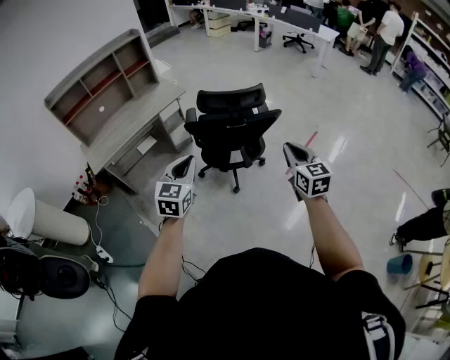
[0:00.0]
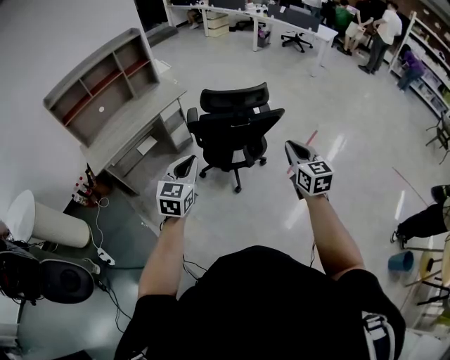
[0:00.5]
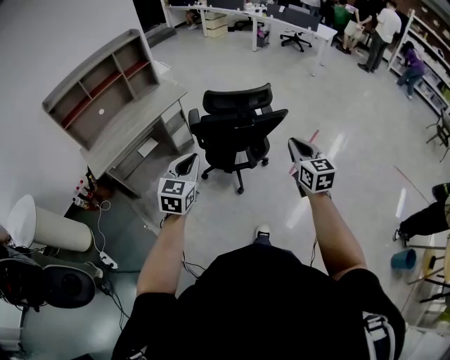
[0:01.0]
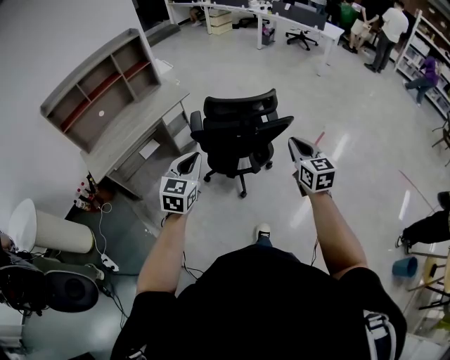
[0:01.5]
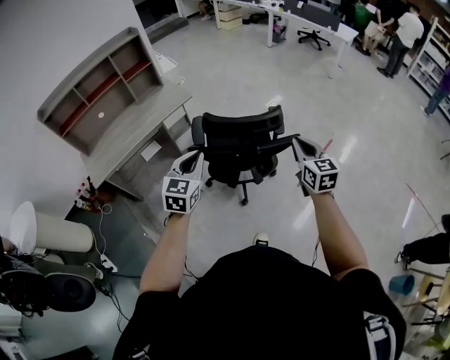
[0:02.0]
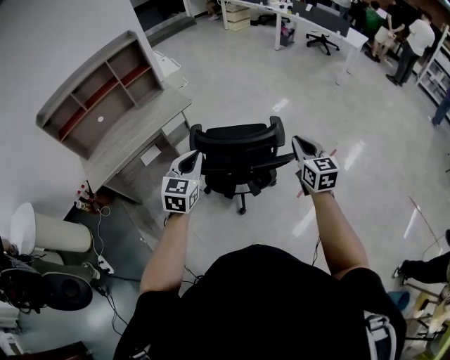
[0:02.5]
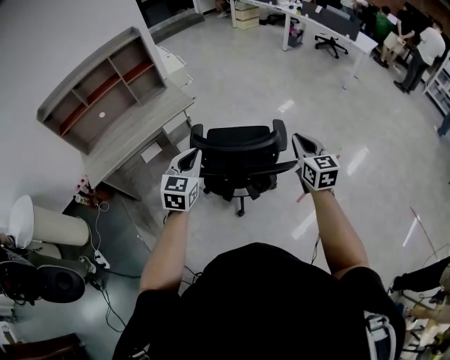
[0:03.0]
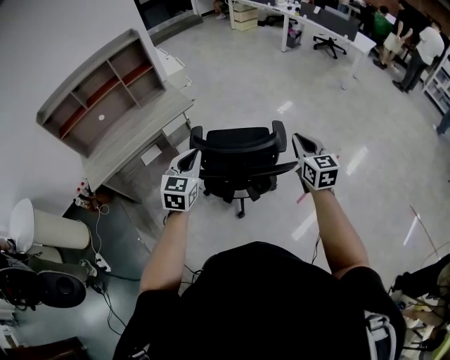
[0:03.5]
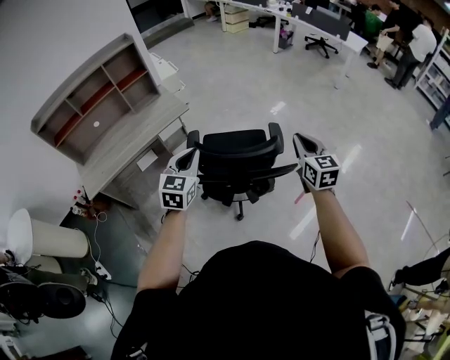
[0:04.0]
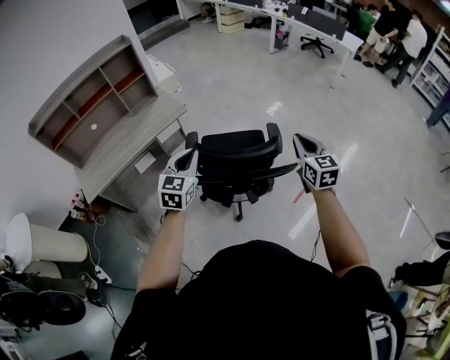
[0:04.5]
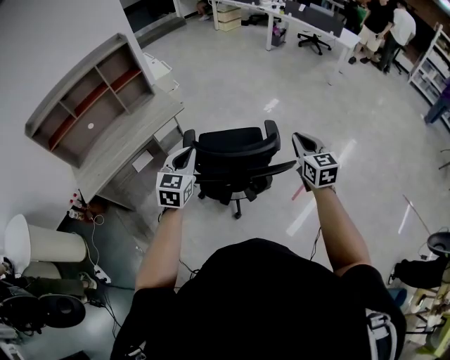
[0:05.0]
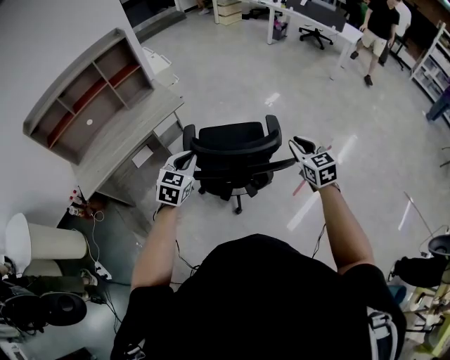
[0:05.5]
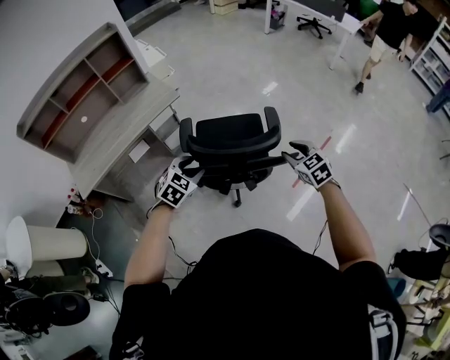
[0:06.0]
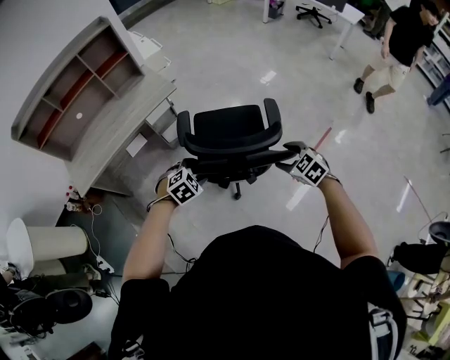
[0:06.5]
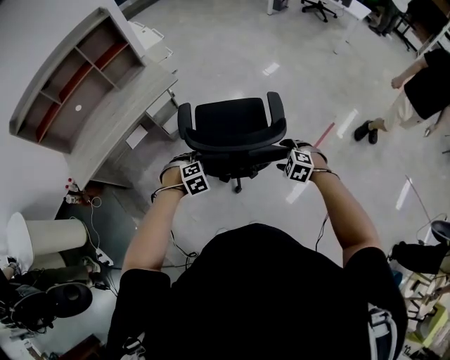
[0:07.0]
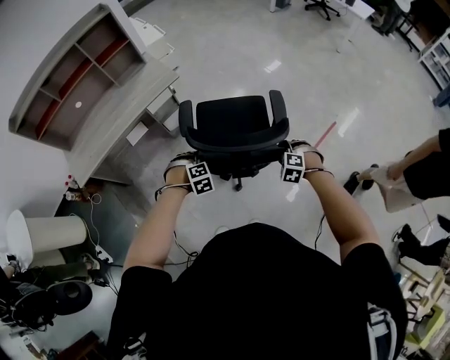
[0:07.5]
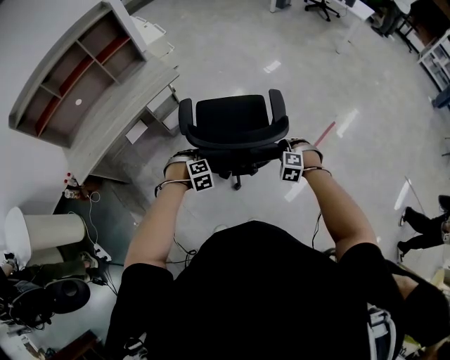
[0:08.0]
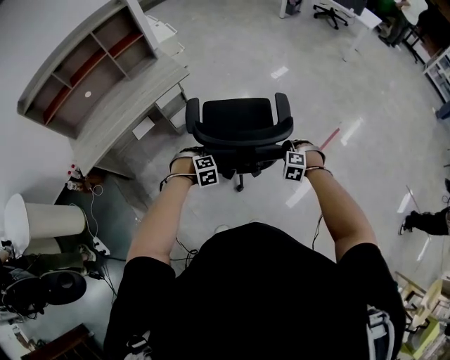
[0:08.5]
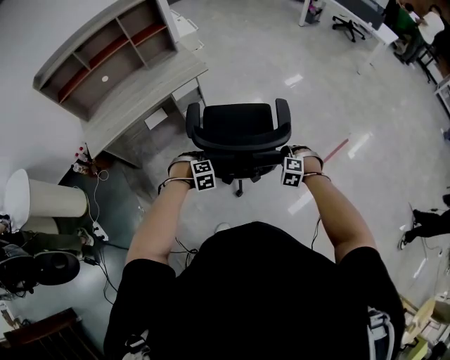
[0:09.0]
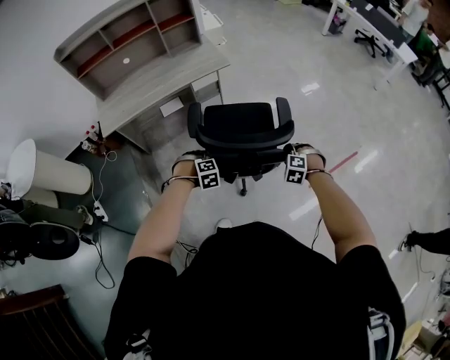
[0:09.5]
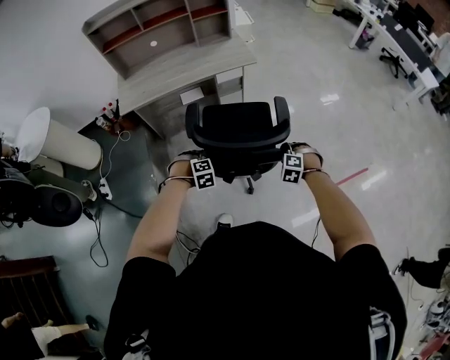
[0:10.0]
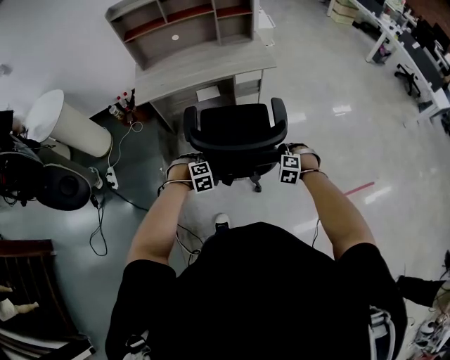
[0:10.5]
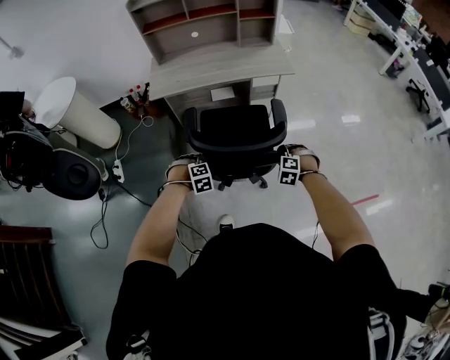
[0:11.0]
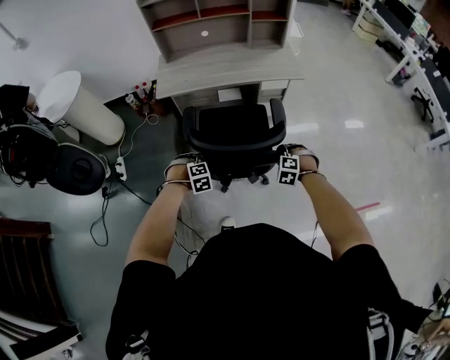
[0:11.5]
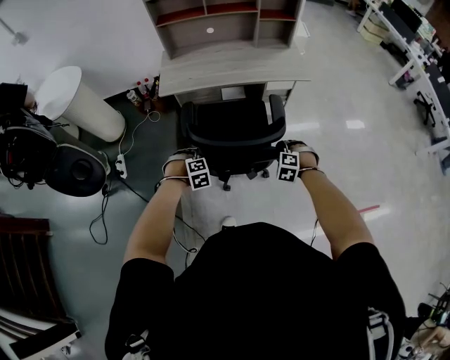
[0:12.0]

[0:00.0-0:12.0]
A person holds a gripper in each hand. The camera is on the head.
0:00.0 to 0:02.0: Both grippers move forward, roughly 20 cm.
0:02.0 to 0:04.0: Both grippers travel together forward, some 15 cm.
0:04.0 to 0:06.0: Both grippers move downward, about 15 cm. The right gripper rotates about 30 degrees, and opens up; the left gripper swivels approximately 40 degrees, and opens its fingers.
0:06.0 to 0:08.0: The two grippers go about 15 cm downward. The right gripper twists approximately 50 degrees counterclockwise, seen from behind, and opens, then closes once more. Meanwhile the left gripper swivels approximately 50 degrees, and opens, then closes once more.
0:08.0 to 0:10.0: The right gripper travels to the left by about 20 cm, and turns by approximately 20 degrees. The left gripper moves to the left and backward, approximately 25 cm, and rotates approximately 20 degrees.
0:10.0 to 0:12.0: The left gripper goes approximately 20 cm to the left; the right gripper goes some 25 cm to the left and forward.

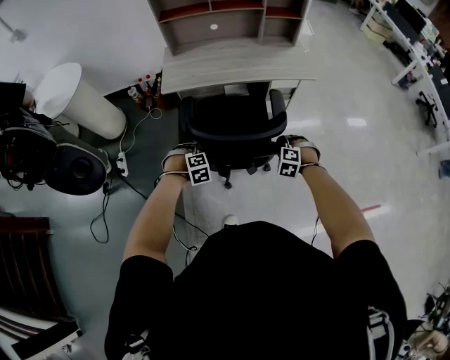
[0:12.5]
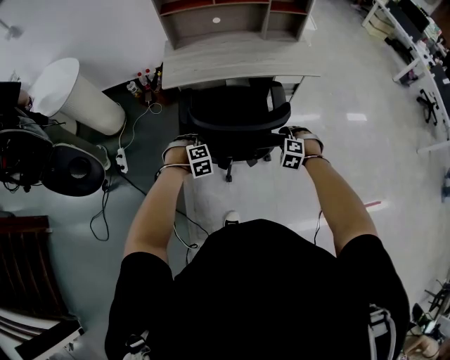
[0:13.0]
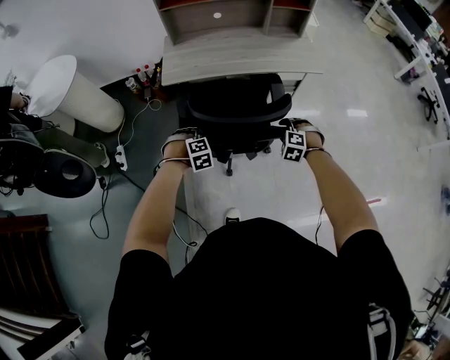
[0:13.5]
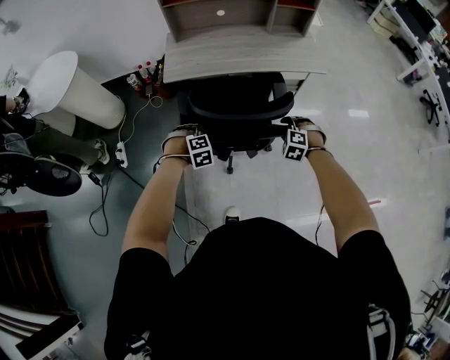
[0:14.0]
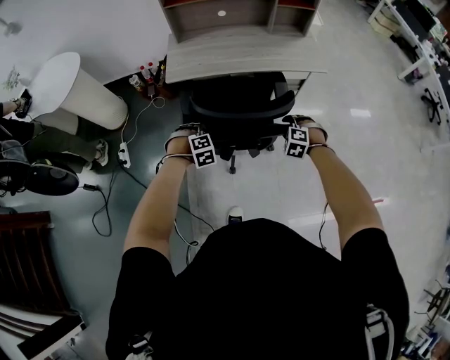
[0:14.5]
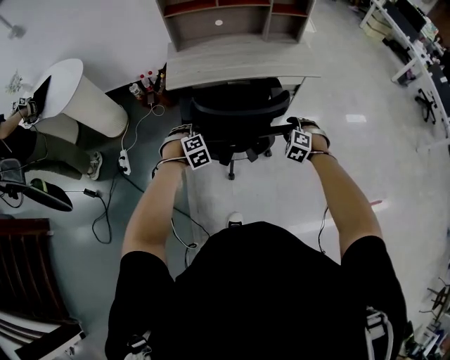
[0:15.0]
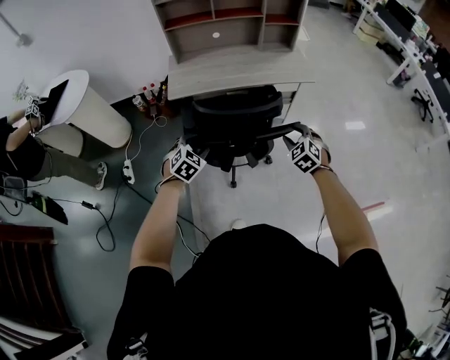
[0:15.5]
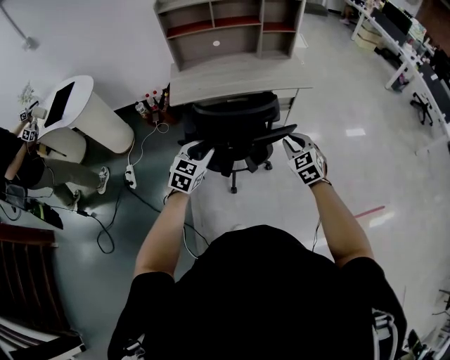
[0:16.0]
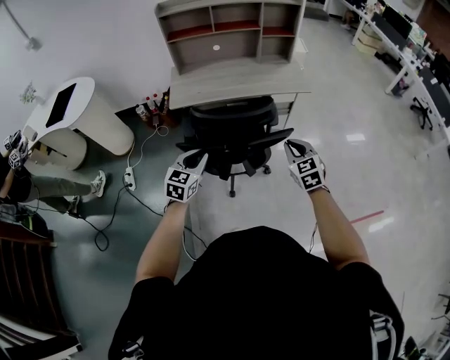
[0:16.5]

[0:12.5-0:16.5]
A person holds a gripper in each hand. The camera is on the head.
0:12.5 to 0:14.5: Both grippers move forward, about 5 cm.
0:14.5 to 0:16.5: The grippers both shift upward and backward by approximately 20 cm. The right gripper rolls clockwise, seen from behind, by about 50 degrees, and closes up; the left gripper tilts its fingers approximately 40 degrees upward.

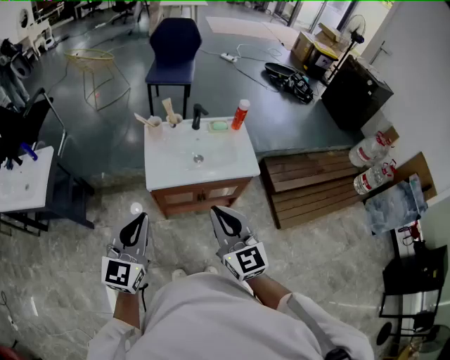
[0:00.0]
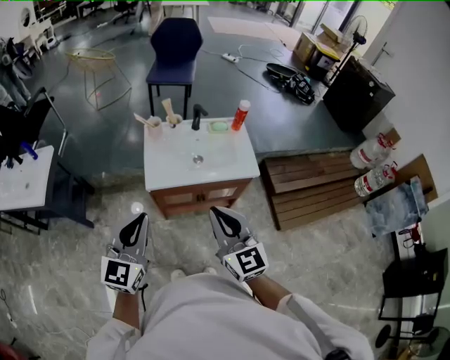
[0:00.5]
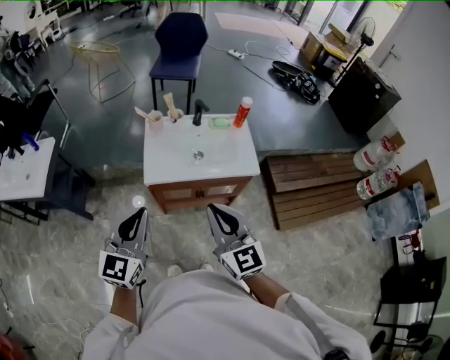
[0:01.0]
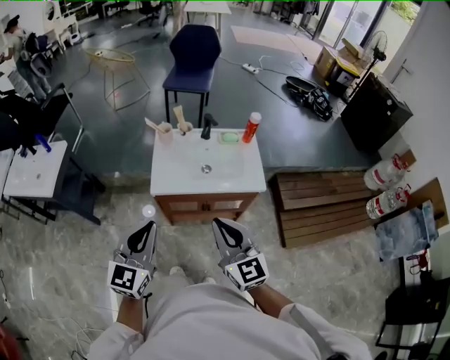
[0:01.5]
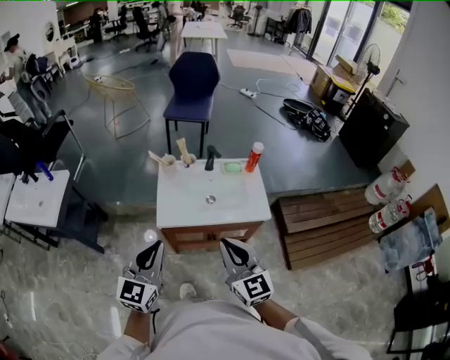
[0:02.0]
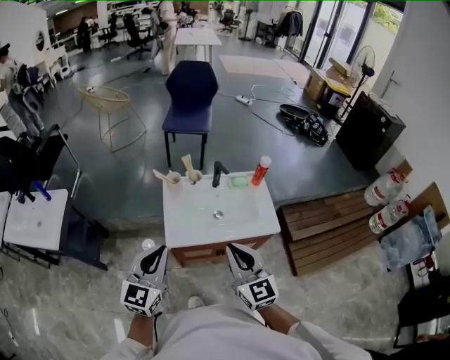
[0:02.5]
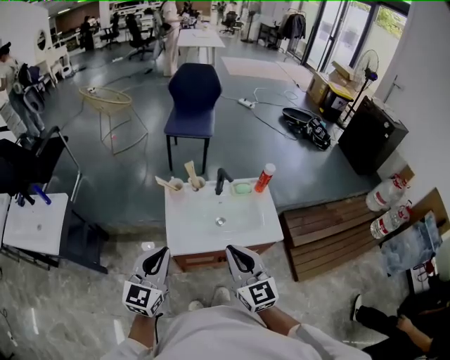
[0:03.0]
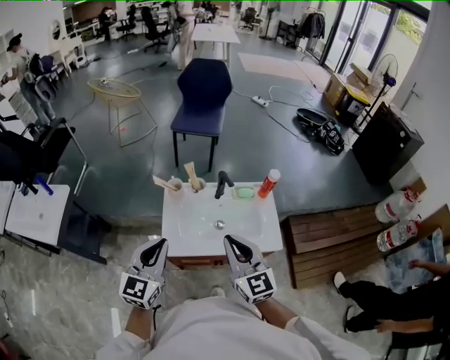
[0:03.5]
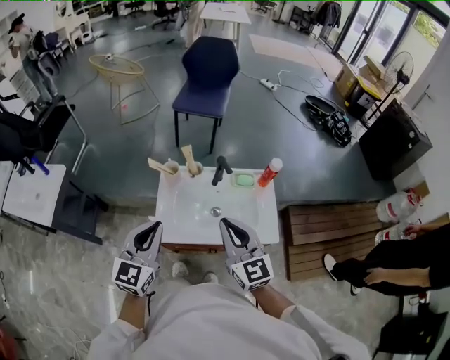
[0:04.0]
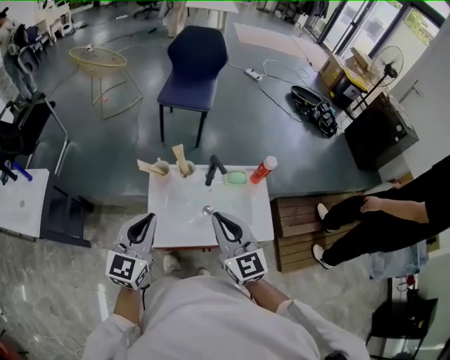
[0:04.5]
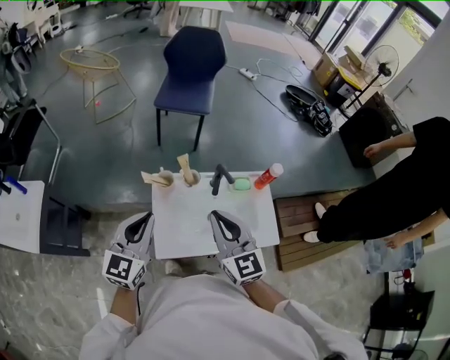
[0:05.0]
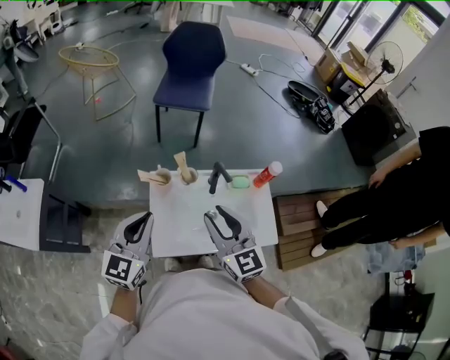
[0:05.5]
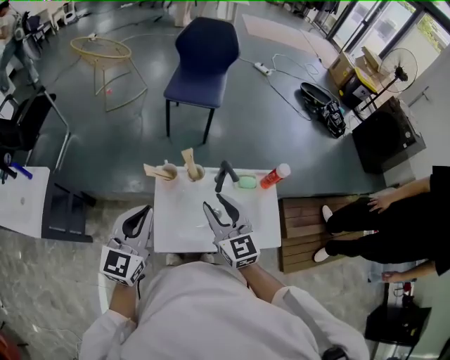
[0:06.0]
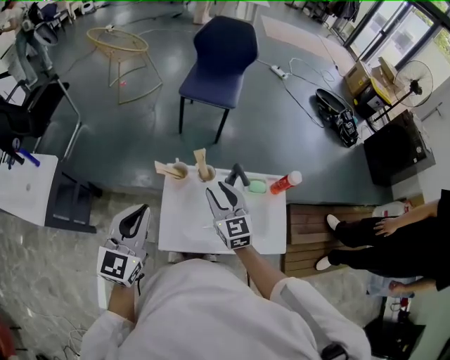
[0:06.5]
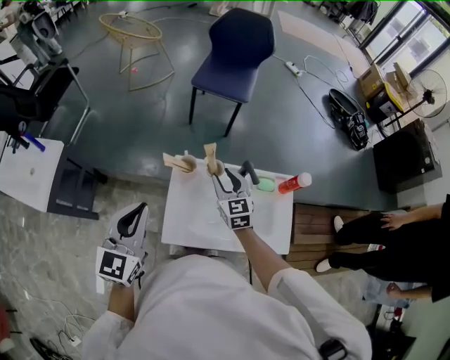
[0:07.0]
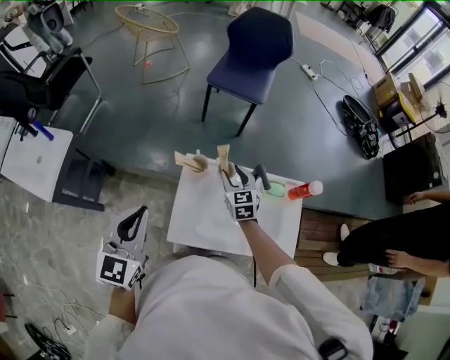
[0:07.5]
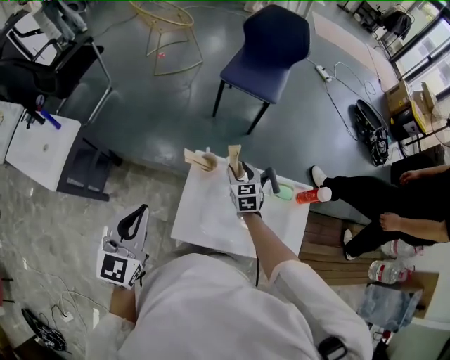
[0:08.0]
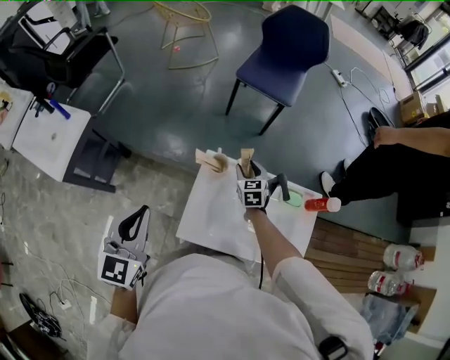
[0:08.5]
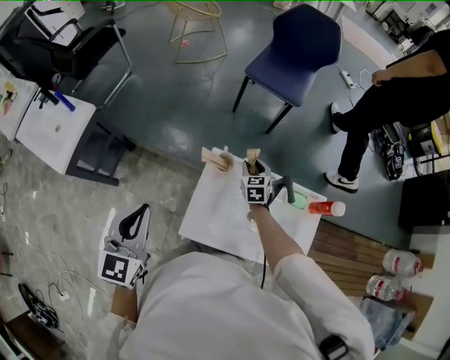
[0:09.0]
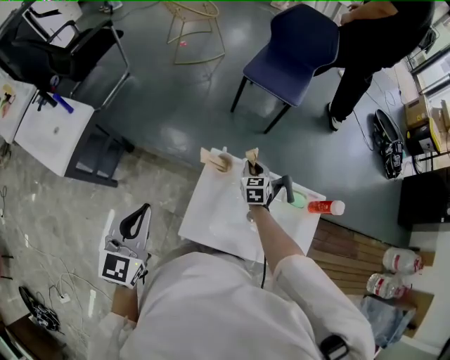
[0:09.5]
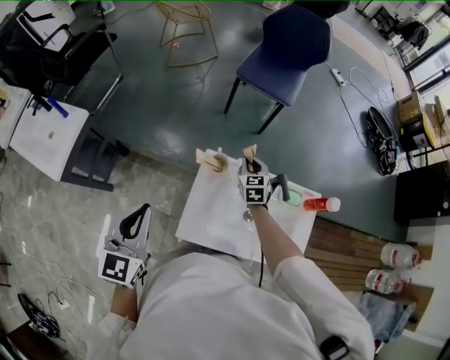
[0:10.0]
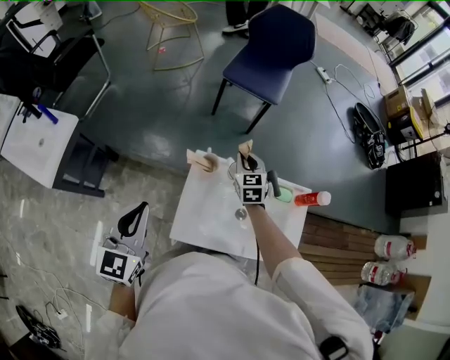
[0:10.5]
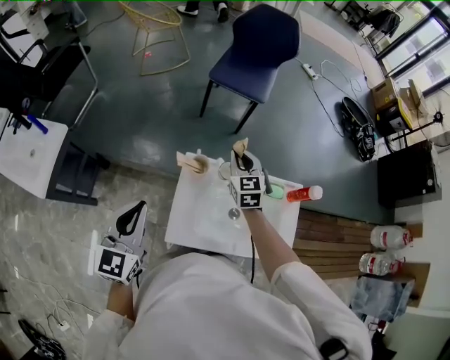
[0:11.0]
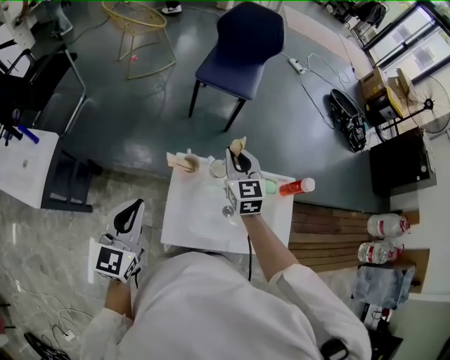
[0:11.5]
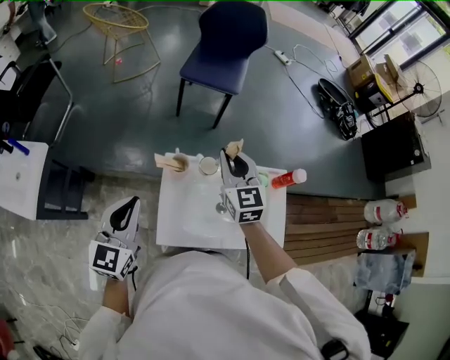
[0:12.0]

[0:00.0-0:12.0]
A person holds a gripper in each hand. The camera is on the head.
0:00.0 to 0:02.0: Both grippers travel together forward, some 5 cm.
0:02.0 to 0:04.0: The grippers both shift forward by about 20 cm.
0:04.0 to 0:06.0: Both grippers travel together forward and to the left, some 15 cm. The right gripper opens up.
0:06.0 to 0:08.0: The left gripper moves to the left, some 10 cm; the right gripper travels downward and forward by roughly 30 cm, and changes its angle by roughly 20 degrees.
0:08.0 to 0:10.0: The right gripper closes its fingers.
0:10.0 to 0:12.0: The right gripper shifts some 20 cm upward, and changes its angle by about 20 degrees. Meanwhile the left gripper shifts by some 5 cm.
